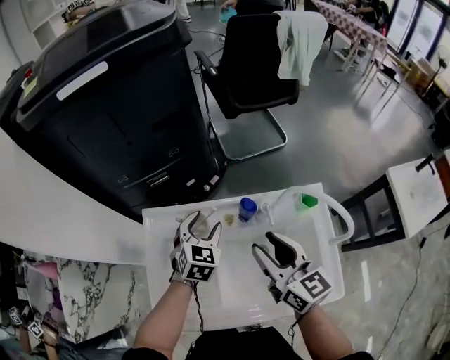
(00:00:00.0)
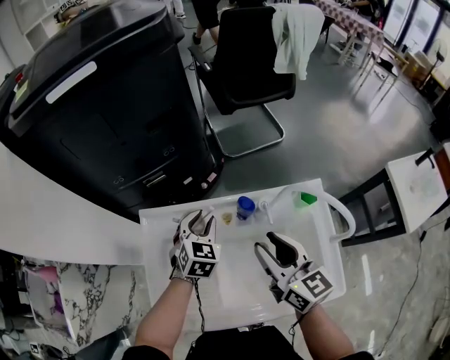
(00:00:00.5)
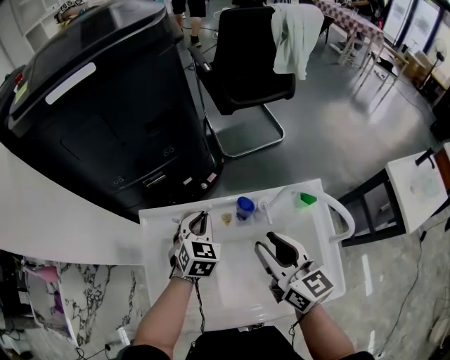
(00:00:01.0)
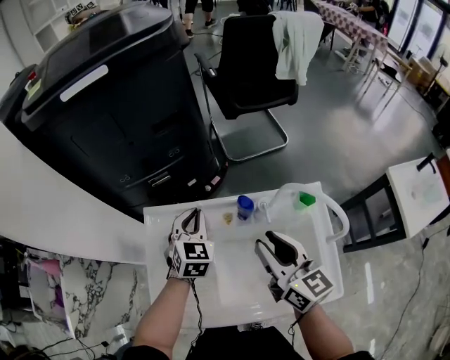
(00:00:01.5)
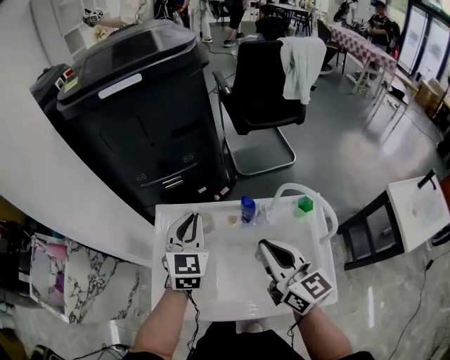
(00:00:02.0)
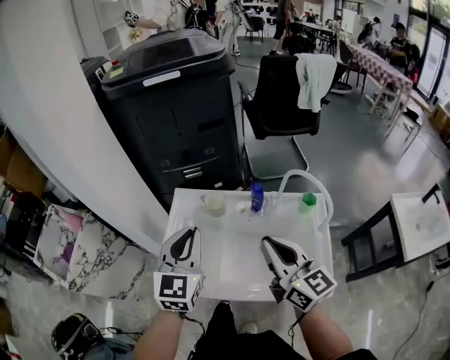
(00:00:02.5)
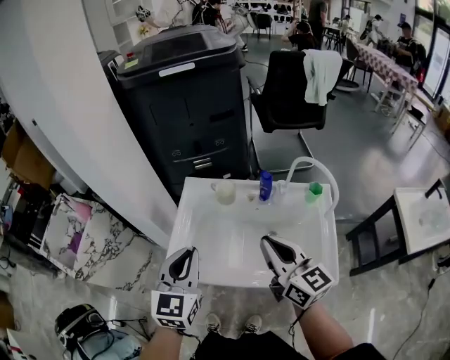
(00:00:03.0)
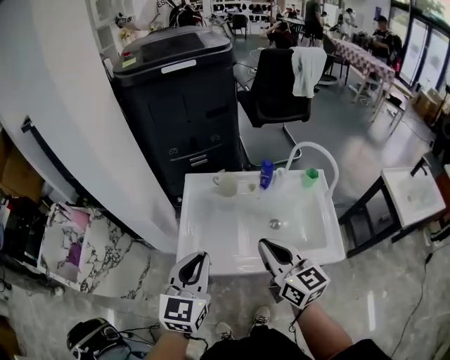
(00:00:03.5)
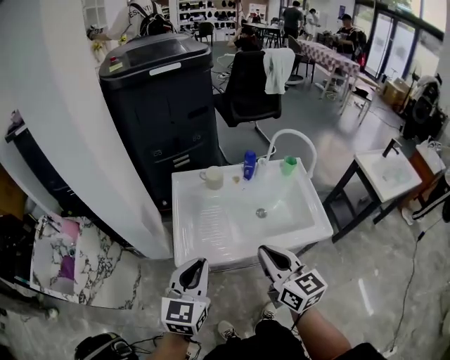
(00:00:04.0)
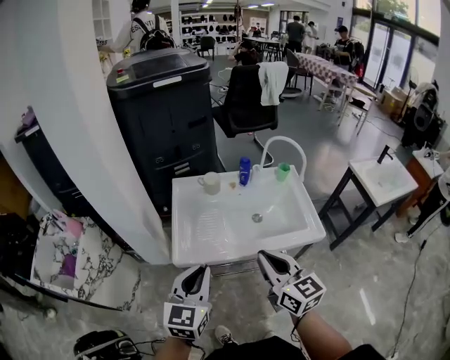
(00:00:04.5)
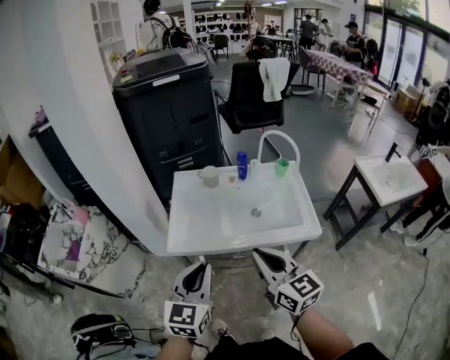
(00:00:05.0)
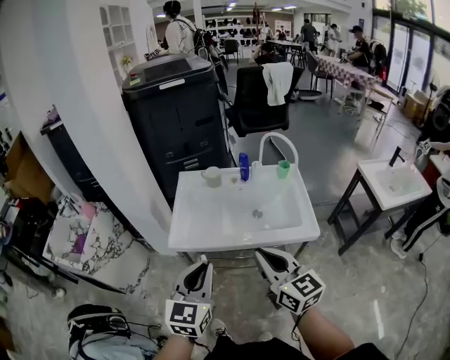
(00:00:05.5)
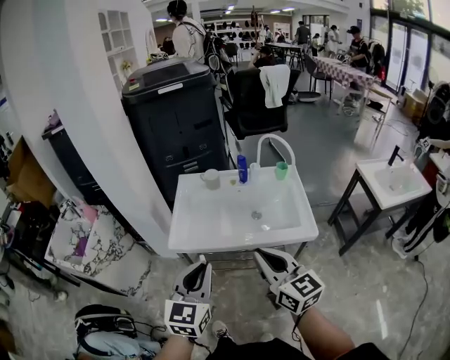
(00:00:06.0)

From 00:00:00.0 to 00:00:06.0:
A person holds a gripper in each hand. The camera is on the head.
From 00:00:00.0 to 00:00:02.0: The left gripper shifts some 15 cm upward, rotates roughly 20 degrees, and closes up. The right gripper moves upward, approximately 5 cm, and closes its fingers.
From 00:00:02.0 to 00:00:04.0: Both grippers move backward and to the left, approximately 35 cm. The left gripper changes its angle by some 20 degrees.
From 00:00:04.0 to 00:00:06.0: Both grippers travel together backward and to the right, roughly 15 cm.

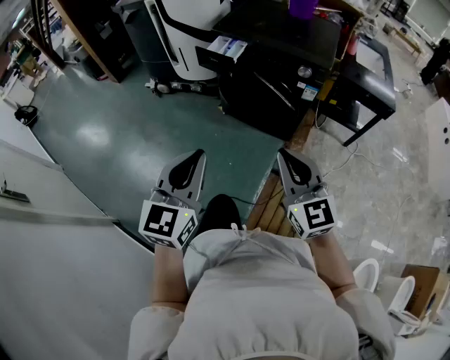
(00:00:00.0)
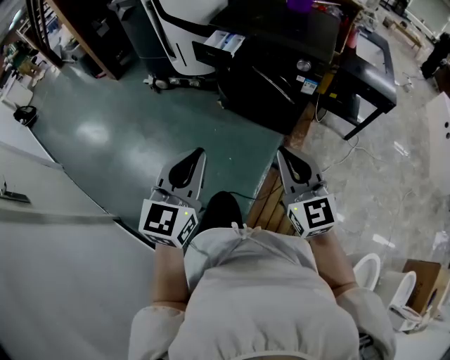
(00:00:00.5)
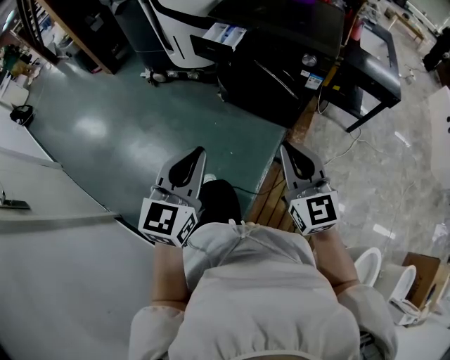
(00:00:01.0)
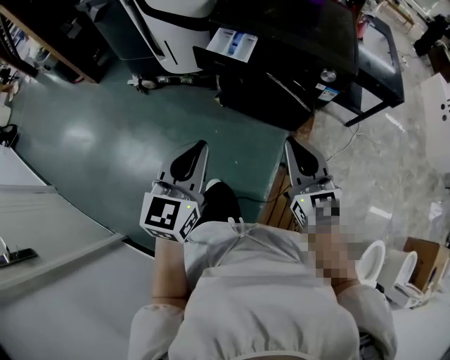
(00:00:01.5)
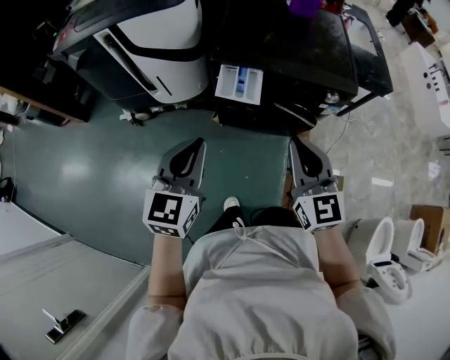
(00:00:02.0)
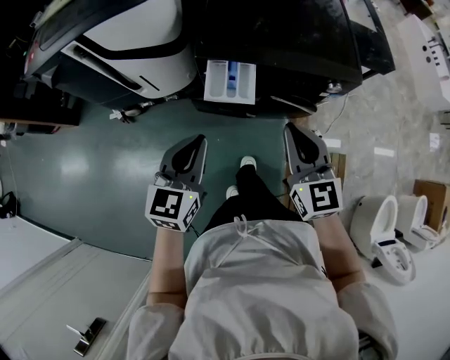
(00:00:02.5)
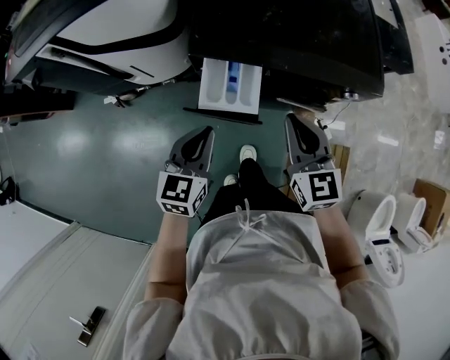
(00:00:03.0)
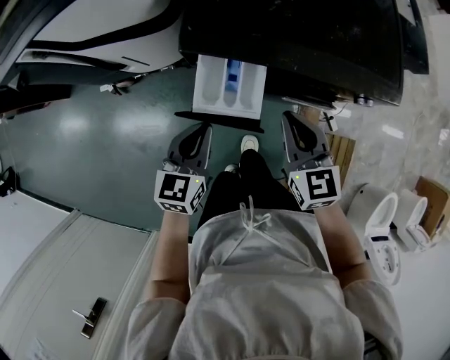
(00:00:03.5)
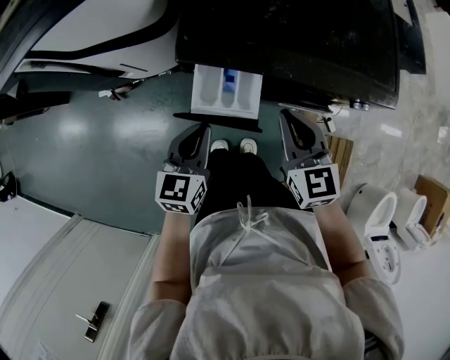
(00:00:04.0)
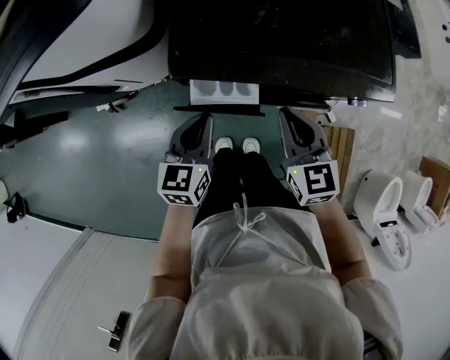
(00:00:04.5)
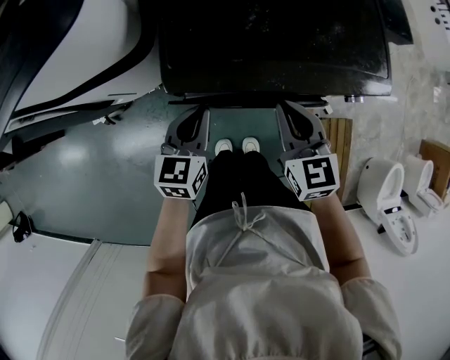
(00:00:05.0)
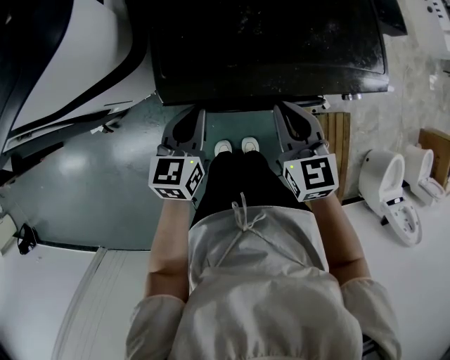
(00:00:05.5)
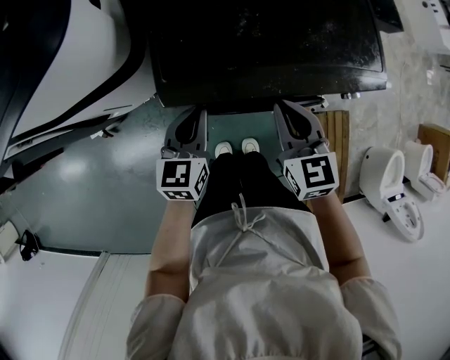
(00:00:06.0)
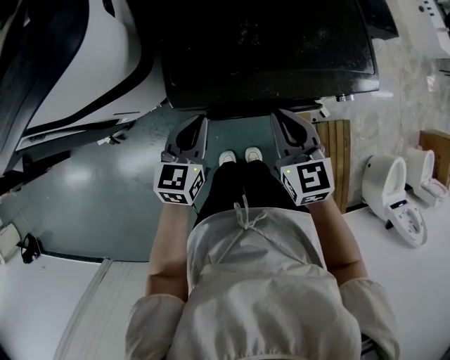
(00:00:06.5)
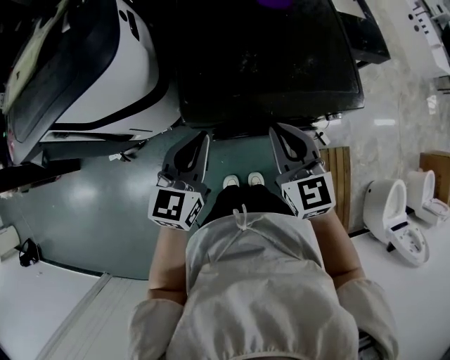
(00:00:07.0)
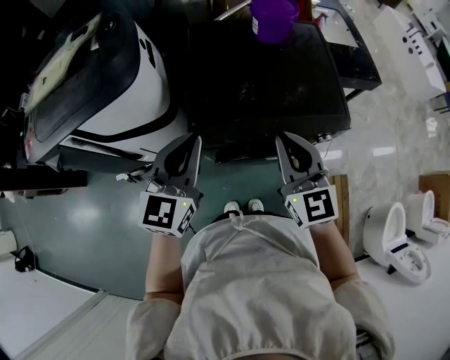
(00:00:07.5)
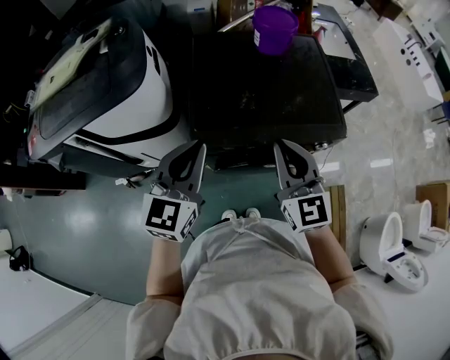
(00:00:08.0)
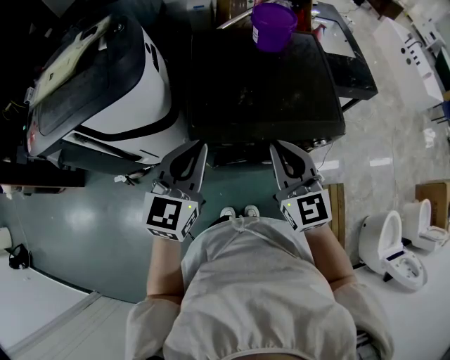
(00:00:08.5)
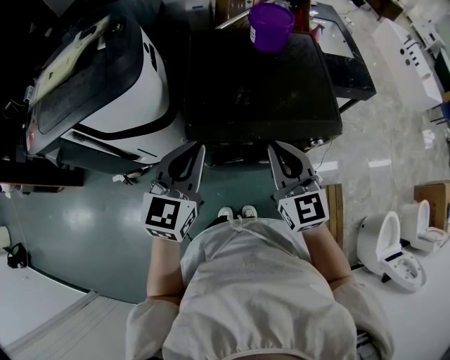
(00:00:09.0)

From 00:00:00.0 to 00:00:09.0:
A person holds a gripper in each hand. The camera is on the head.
From 00:00:00.0 to 00:00:02.0: The grippers both shift forward and to the left by approximately 40 cm. The right gripper turns by about 30 degrees.
From 00:00:02.0 to 00:00:04.5: The two grippers go roughly 30 cm forward and downward. The right gripper swivels about 20 degrees.
From 00:00:04.5 to 00:00:07.0: The grippers both shift upward by some 15 cm.
From 00:00:07.0 to 00:00:09.0: Both grippers travel together upward, approximately 10 cm.

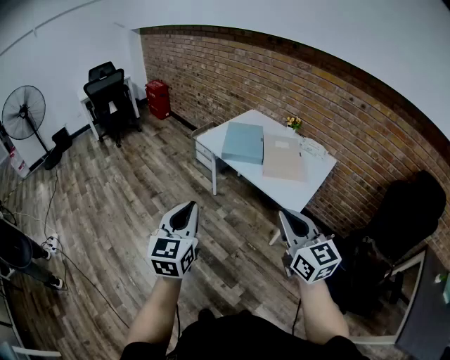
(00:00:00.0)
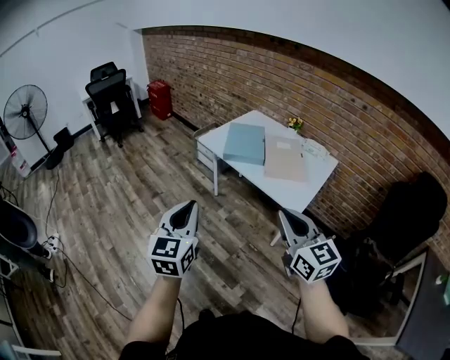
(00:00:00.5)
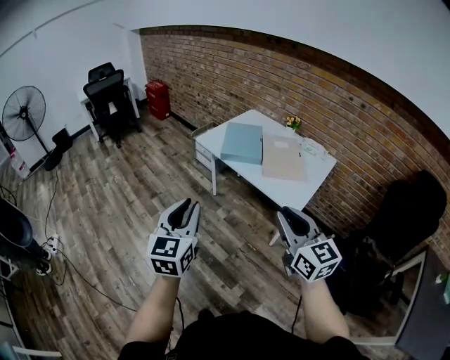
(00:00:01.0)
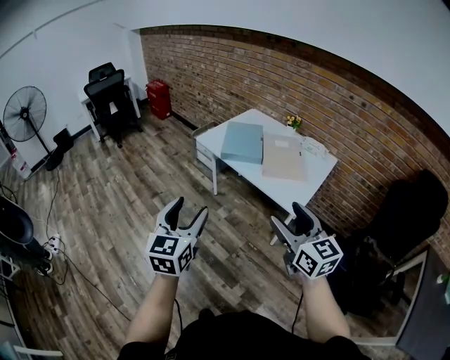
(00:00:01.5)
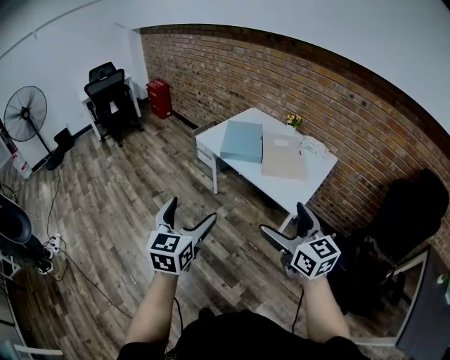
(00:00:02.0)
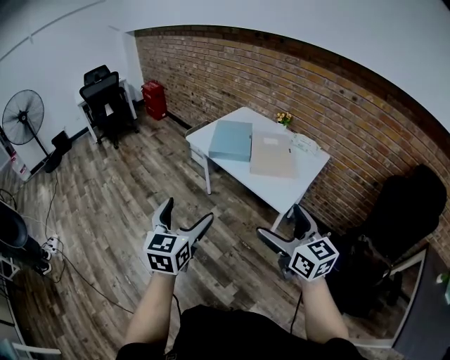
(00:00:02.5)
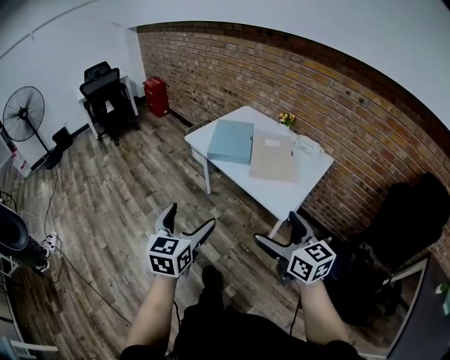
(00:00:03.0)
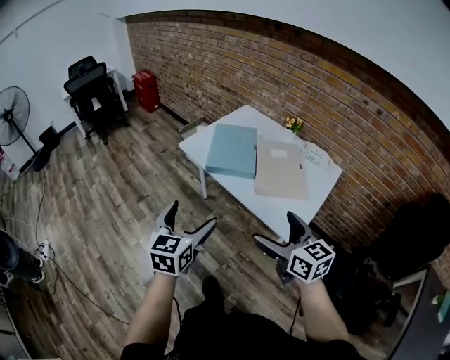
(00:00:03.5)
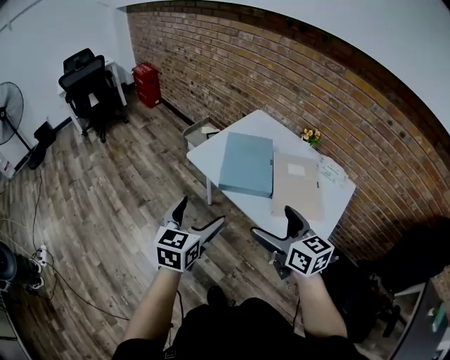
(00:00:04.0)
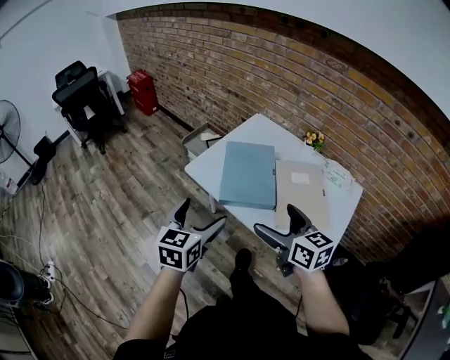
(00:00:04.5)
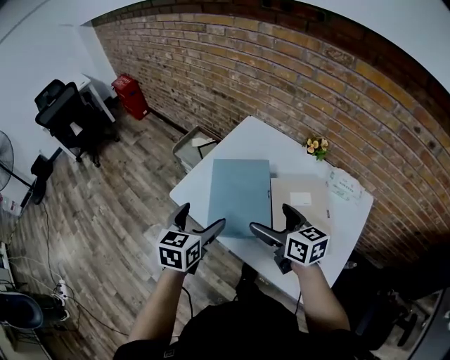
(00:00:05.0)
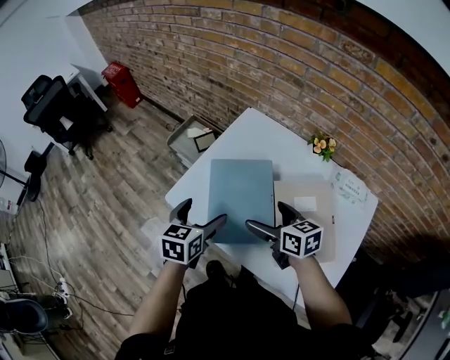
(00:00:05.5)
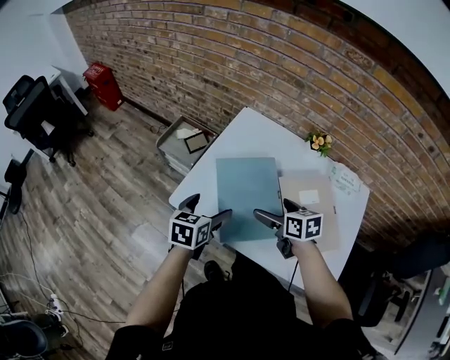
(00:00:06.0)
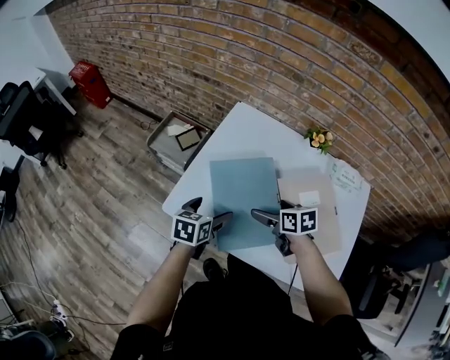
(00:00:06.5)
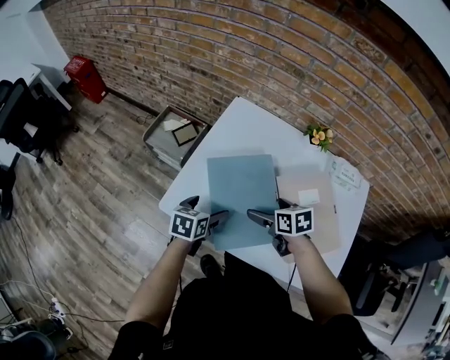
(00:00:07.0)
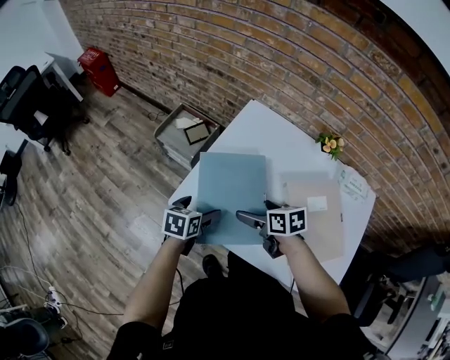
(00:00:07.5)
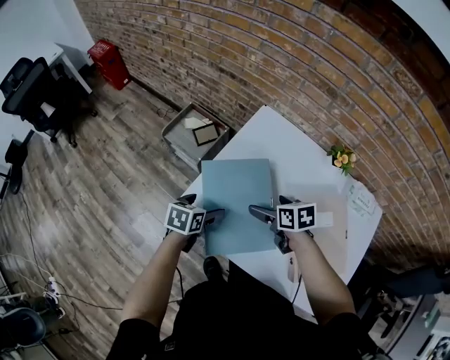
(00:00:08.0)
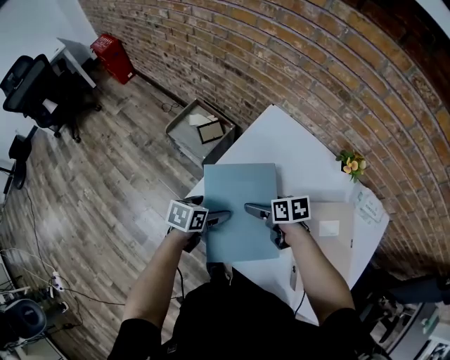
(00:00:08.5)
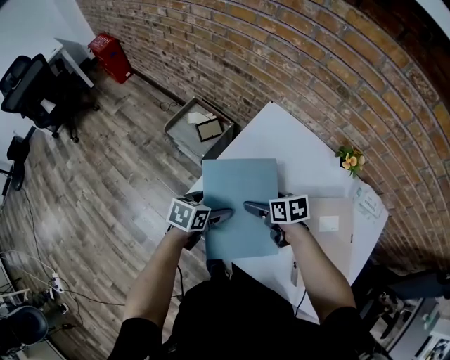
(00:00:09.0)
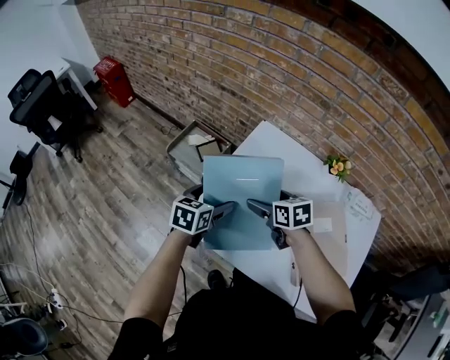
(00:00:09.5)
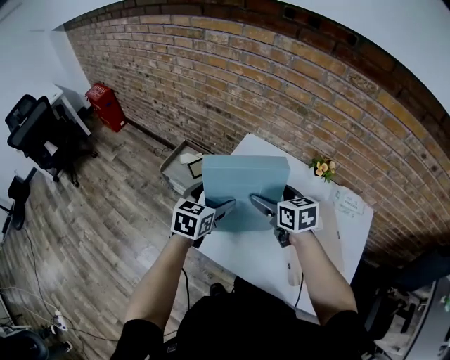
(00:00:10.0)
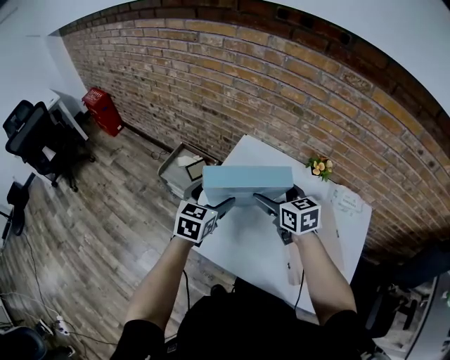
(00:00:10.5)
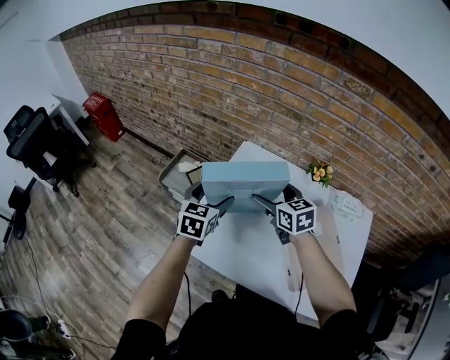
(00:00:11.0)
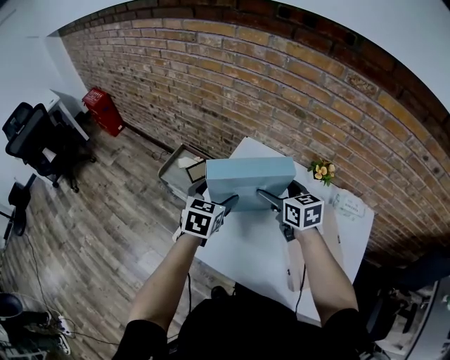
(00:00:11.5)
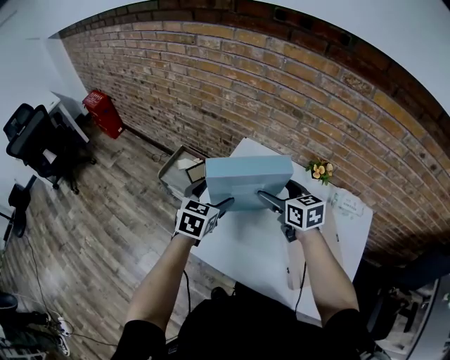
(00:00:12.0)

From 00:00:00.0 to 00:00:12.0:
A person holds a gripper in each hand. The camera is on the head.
From 00:00:00.0 to 00:00:02.0: The left gripper opens its fingers; the right gripper opens.
From 00:00:02.0 to 00:00:04.0: The grippers both shift forward by some 30 cm.
From 00:00:04.0 to 00:00:06.0: The two grippers go approximately 35 cm forward and downward. The left gripper changes its angle by approximately 30 degrees, while the right gripper swivels approximately 30 degrees.
From 00:00:06.0 to 00:00:08.0: The right gripper travels forward and downward by some 10 cm; the left gripper is displaced downward and forward by approximately 10 cm.
From 00:00:08.0 to 00:00:10.0: The grippers both shift upward by some 15 cm. The right gripper changes its angle by some 20 degrees; the left gripper rotates some 30 degrees.
From 00:00:10.0 to 00:00:12.0: The grippers stay close to where they were, moving slightly.
